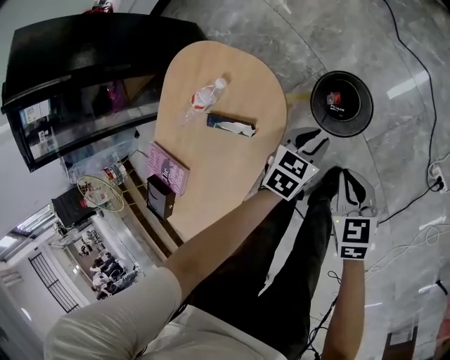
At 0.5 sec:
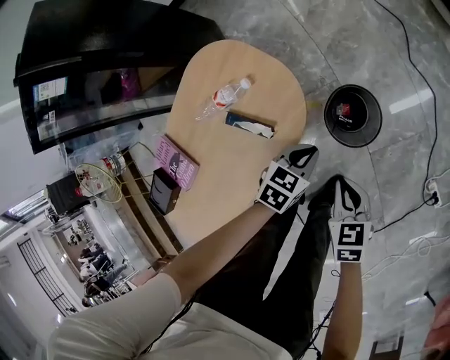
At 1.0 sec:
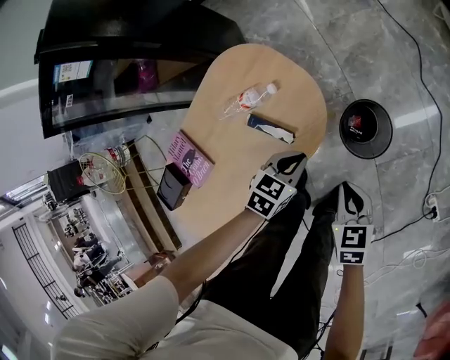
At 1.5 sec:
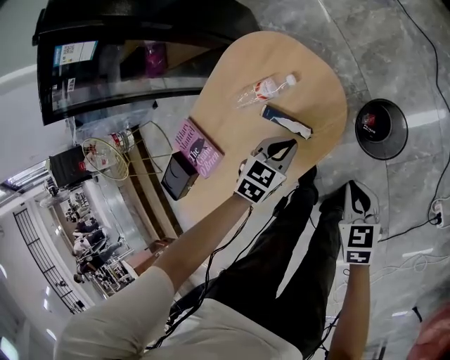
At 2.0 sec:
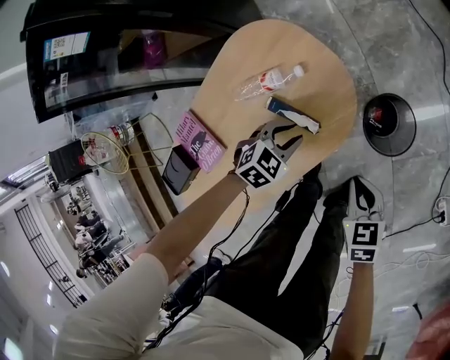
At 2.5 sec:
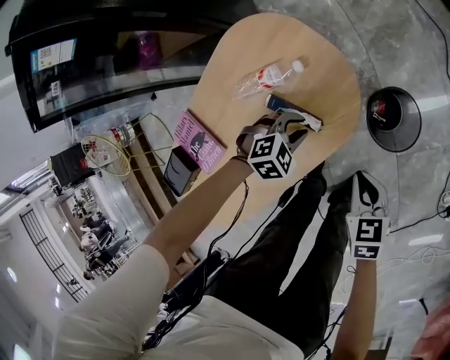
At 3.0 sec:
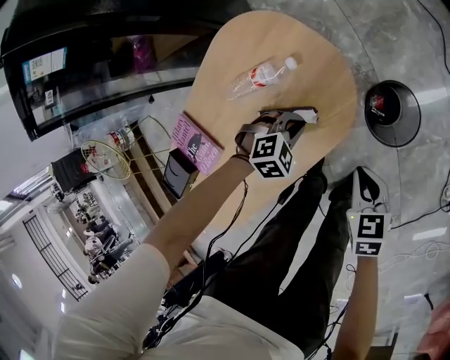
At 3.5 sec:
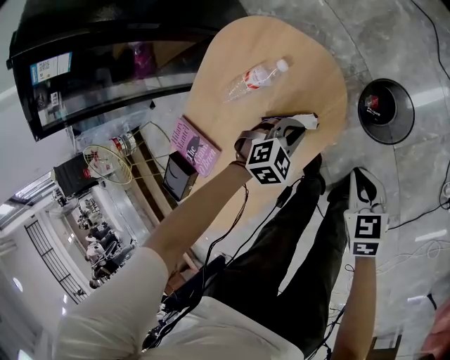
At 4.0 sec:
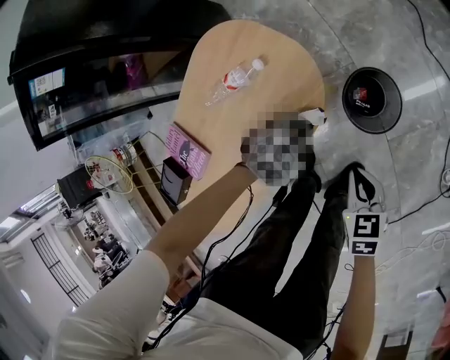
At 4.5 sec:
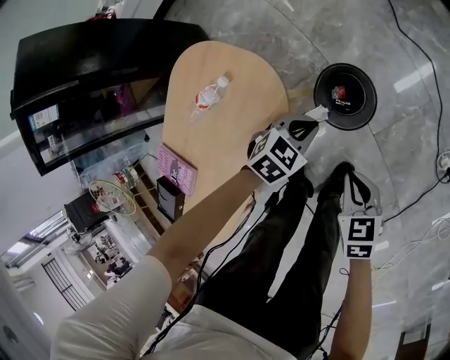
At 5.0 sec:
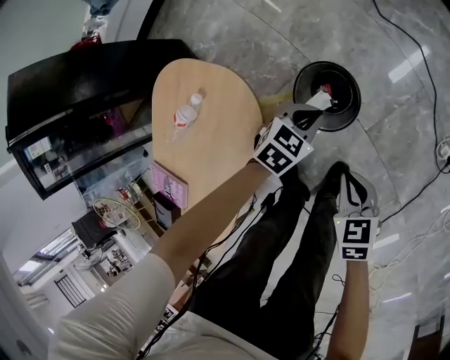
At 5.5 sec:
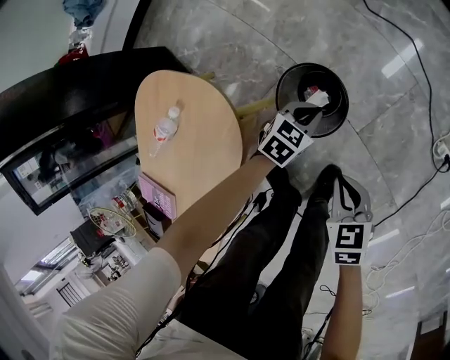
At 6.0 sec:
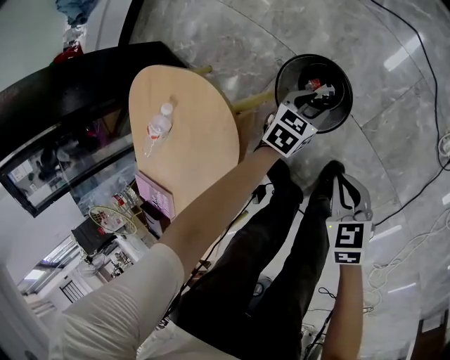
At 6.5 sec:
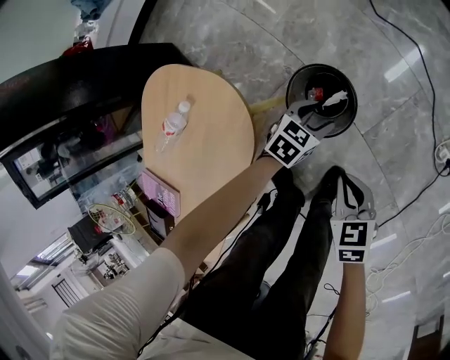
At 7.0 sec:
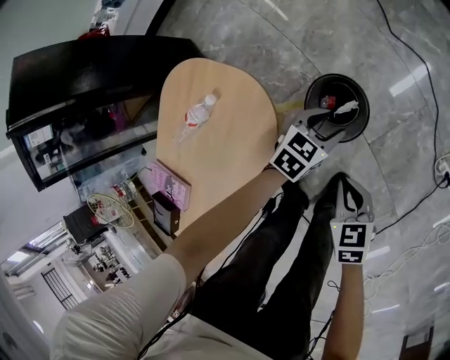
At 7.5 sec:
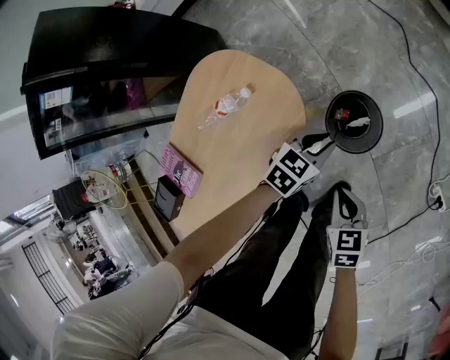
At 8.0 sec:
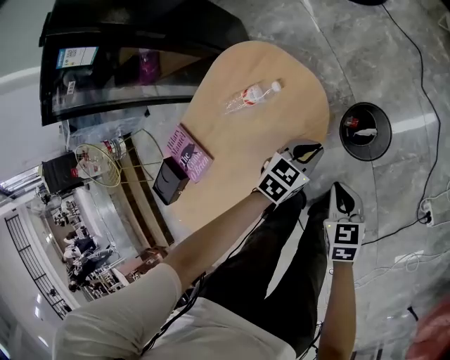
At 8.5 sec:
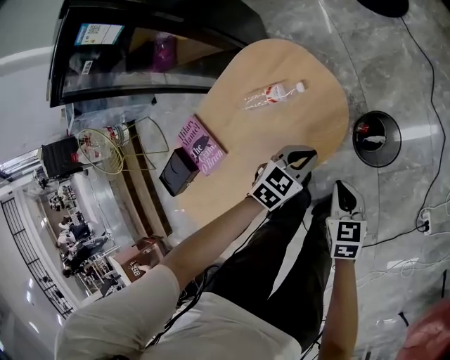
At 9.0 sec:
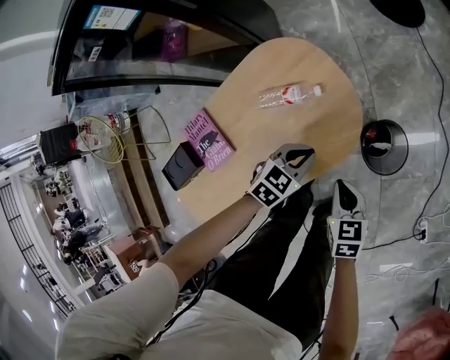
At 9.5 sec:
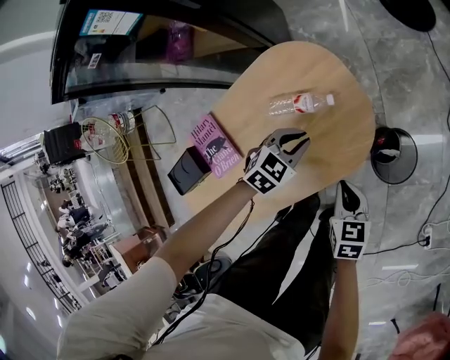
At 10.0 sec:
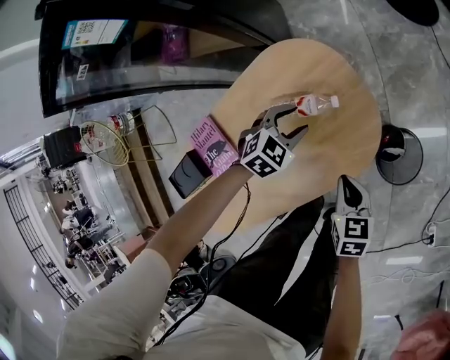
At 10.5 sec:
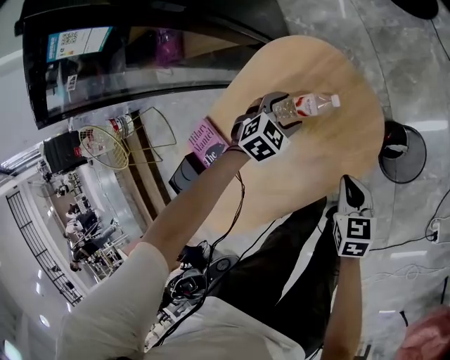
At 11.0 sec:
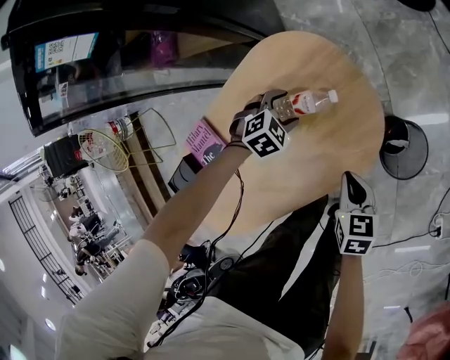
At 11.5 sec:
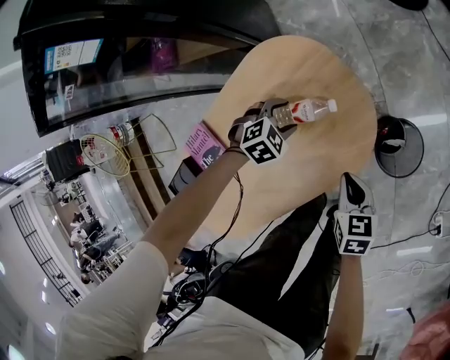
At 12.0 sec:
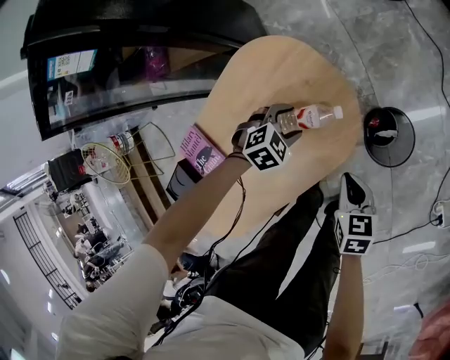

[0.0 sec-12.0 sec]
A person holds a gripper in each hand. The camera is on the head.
0.0 sec to 2.0 sec: The left gripper heads to the left, covering about 25 cm. Meanwhile the right gripper heads to the left, covering roughly 15 cm.
2.0 sec to 4.0 sec: The left gripper moves some 10 cm, while the right gripper shifts by some 5 cm.
4.0 sec to 6.0 sec: The right gripper moves to the right and downward, roughly 15 cm. The left gripper shifts roughly 30 cm downward, to the right and forward, and opens up.
6.0 sec to 8.0 sec: The two grippers go roughly 25 cm upward and to the left. The left gripper turns by roughly 20 degrees, and closes its fingers.
8.0 sec to 10.0 sec: The left gripper moves to the left and forward, roughly 25 cm, swivels some 20 degrees, and opens its fingers. The right gripper moves to the left and forward, about 15 cm.
10.0 sec to 12.0 sec: The left gripper ends up about 10 cm from where it was, and swivels some 20 degrees, while the right gripper shifts by roughly 5 cm.

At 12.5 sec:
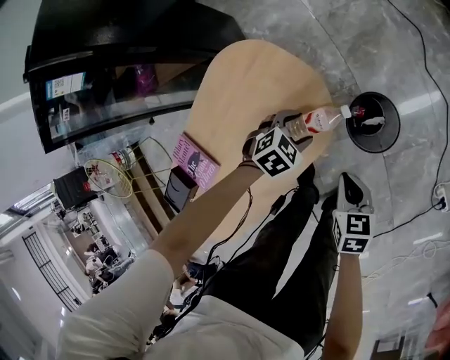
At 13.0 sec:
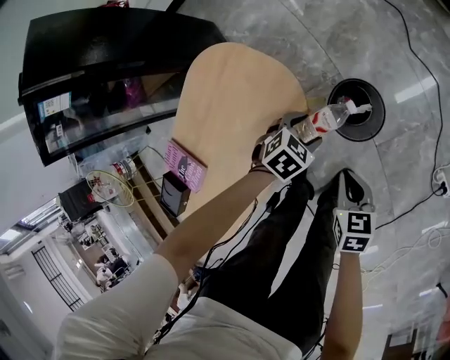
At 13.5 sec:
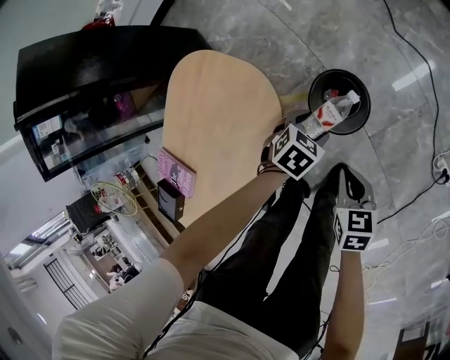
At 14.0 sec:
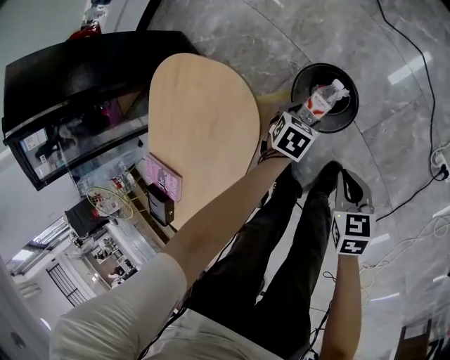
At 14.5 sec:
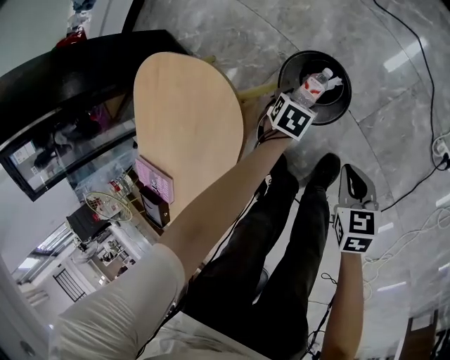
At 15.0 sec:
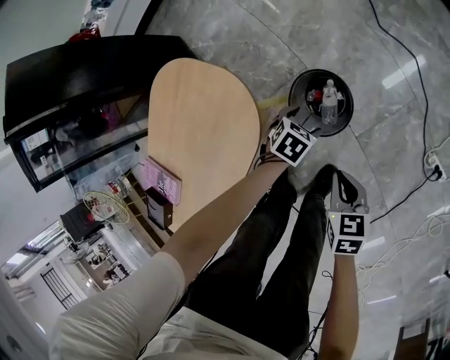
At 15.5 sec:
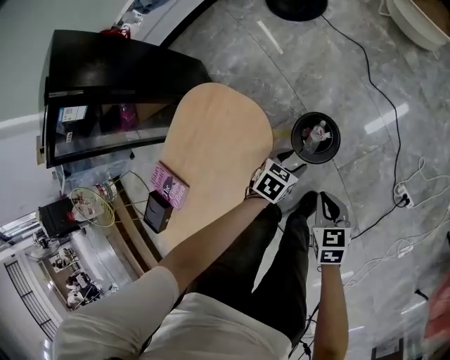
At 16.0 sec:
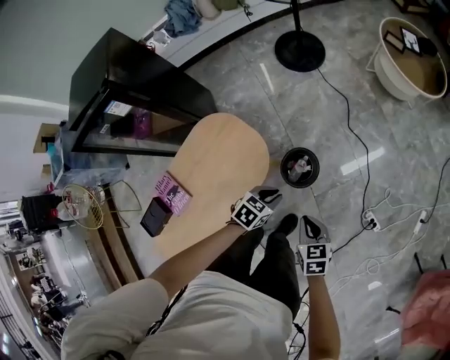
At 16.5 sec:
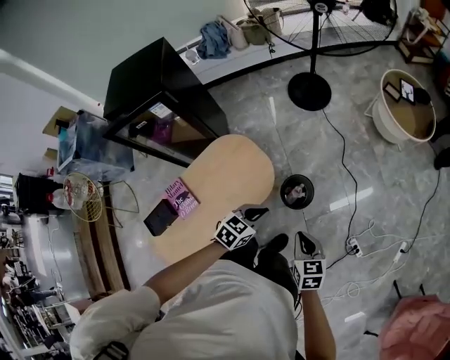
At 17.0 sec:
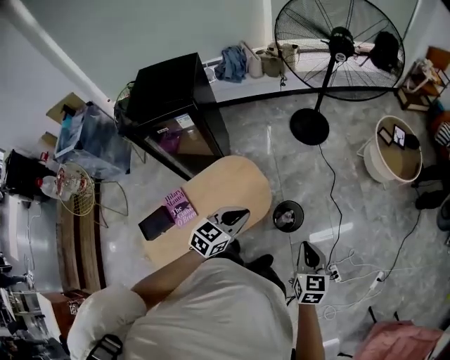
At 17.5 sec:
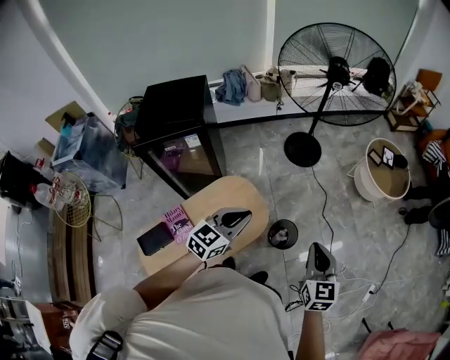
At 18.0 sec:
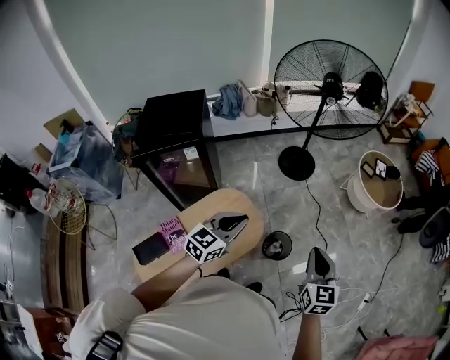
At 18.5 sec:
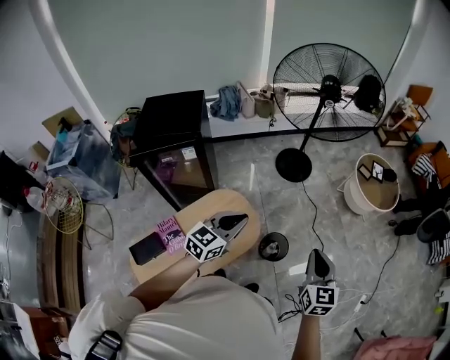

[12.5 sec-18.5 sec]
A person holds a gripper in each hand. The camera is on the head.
12.5 sec to 14.5 sec: The right gripper moves approximately 25 cm. The left gripper travels downward by about 20 cm.
14.5 sec to 16.5 sec: Both grippers move upward, approximately 50 cm. The right gripper rotates approximately 30 degrees. The left gripper points its fingers some 40 degrees further upward, and closes.
16.5 sec to 18.5 sec: The left gripper is displaced upward and to the left by roughly 30 cm, and rotates roughly 30 degrees, while the right gripper heads upward, covering about 30 cm, and rotates approximately 30 degrees.

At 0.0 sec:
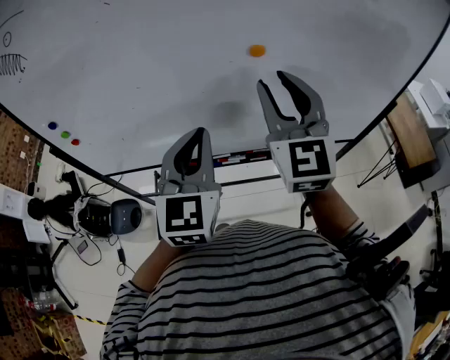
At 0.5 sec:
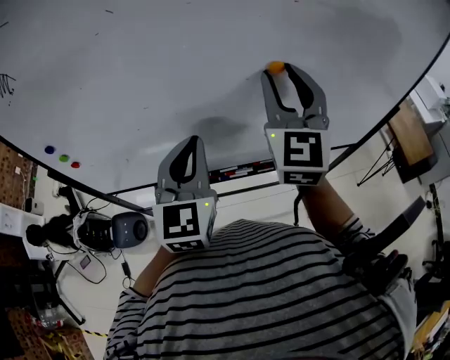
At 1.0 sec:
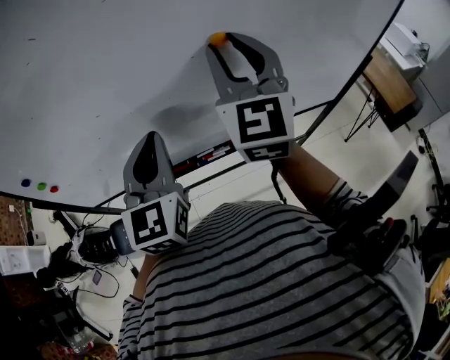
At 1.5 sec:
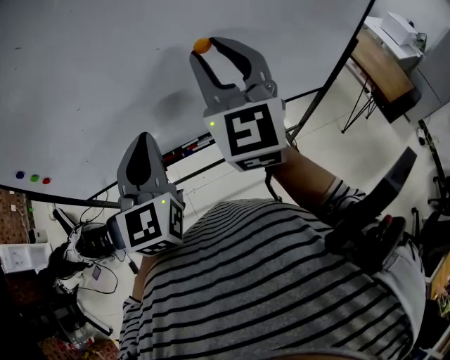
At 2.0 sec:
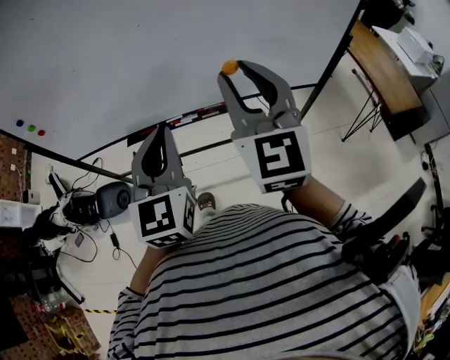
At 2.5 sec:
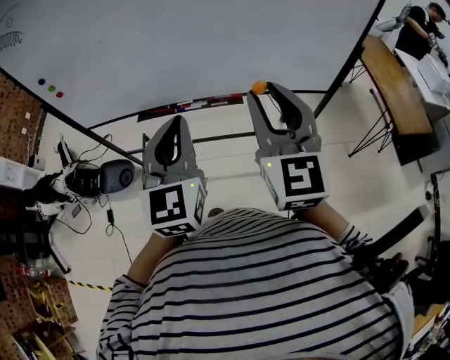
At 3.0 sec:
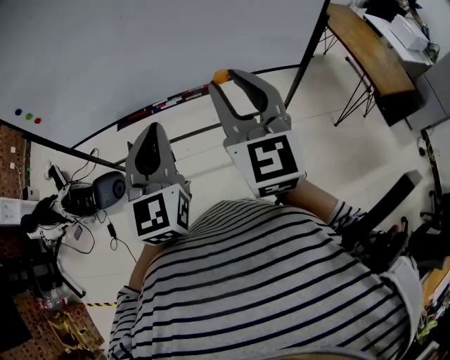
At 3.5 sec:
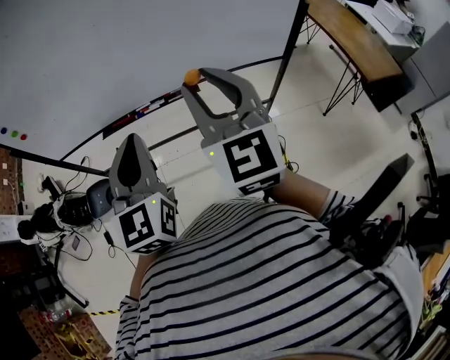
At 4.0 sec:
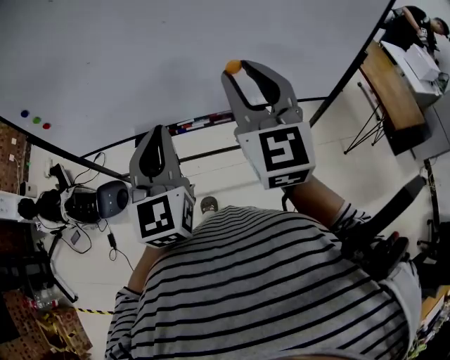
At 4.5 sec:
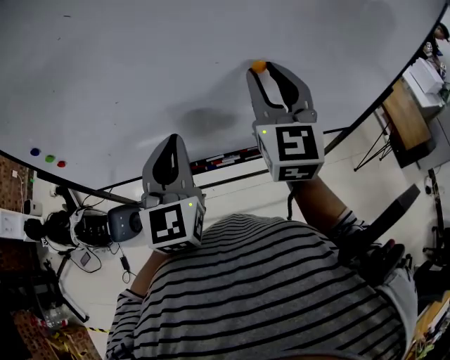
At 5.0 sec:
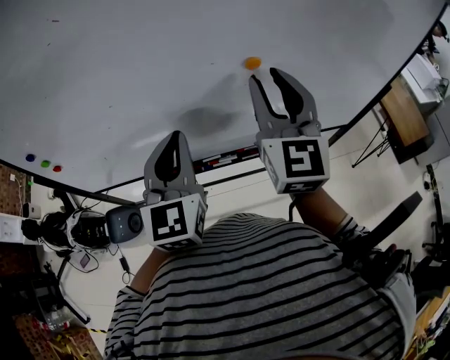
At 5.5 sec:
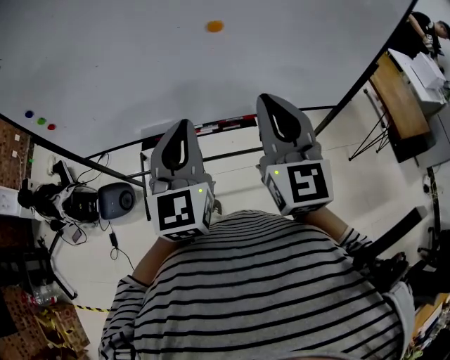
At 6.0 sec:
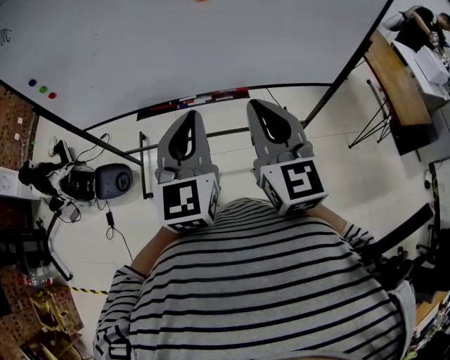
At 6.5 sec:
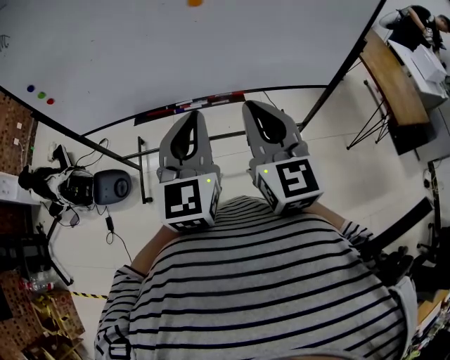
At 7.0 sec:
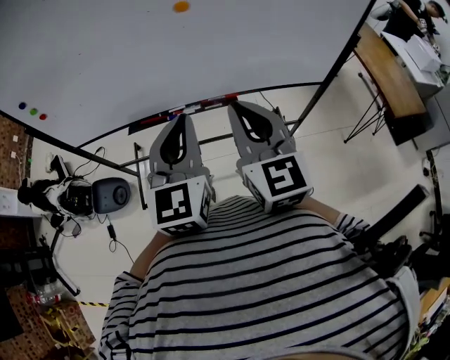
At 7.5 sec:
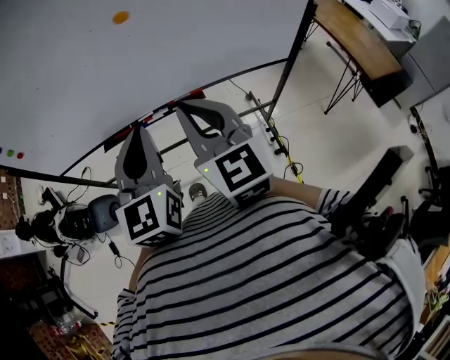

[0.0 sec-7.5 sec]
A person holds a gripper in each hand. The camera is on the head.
0.0 sec to 2.0 sec: Both grippers move backward and to the right, roughly 15 cm.
2.0 sec to 4.0 sec: The right gripper moves approximately 5 cm, while the left gripper shifts roughly 5 cm to the left, and goes backward and returns, some 5 cm each way.
4.0 sec to 5.5 sec: The left gripper moves roughly 10 cm forward and comes back. The right gripper travels forward and back again, some 10 cm each way, and closes up.
5.5 sec to 7.5 sec: The grippers both shift backward by some 10 cm.

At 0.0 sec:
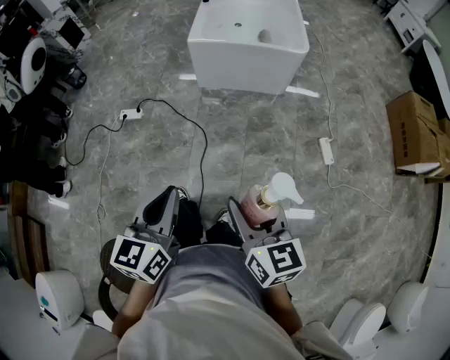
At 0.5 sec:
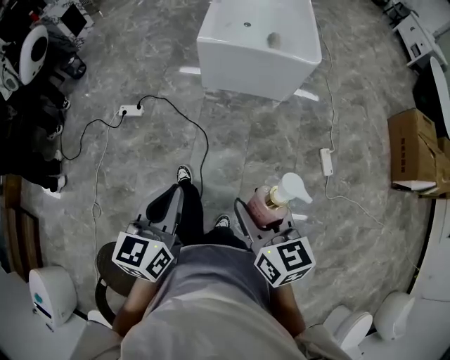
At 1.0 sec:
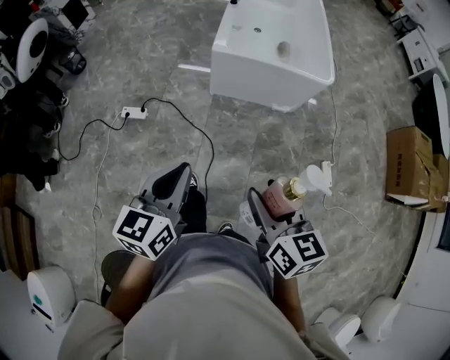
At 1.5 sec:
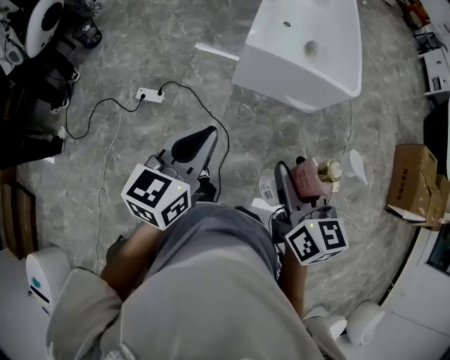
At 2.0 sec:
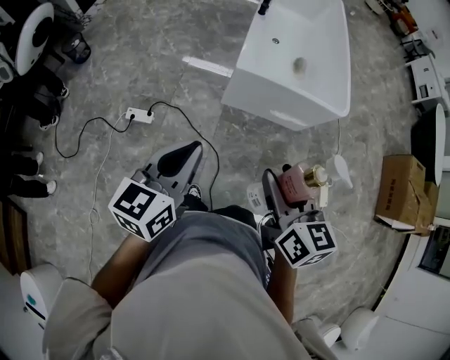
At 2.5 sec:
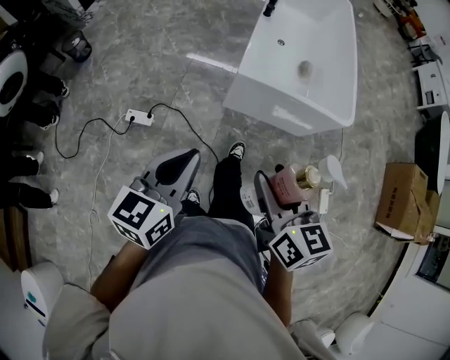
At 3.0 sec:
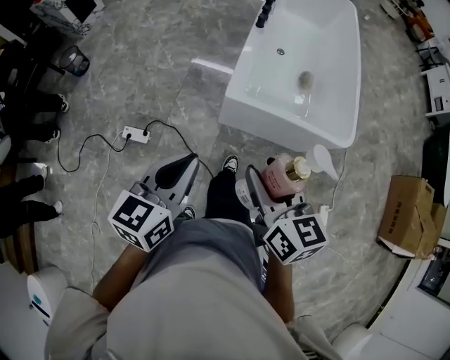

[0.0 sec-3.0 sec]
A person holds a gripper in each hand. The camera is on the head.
0.0 sec to 1.5 sec: The grippers both shift forward and to the left by roughly 35 cm.
1.5 sec to 3.0 sec: The two grippers go approximately 30 cm forward.
